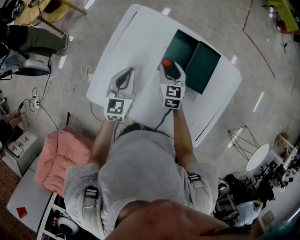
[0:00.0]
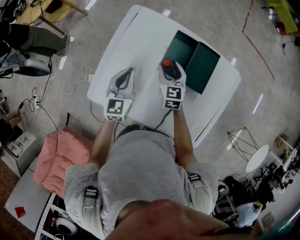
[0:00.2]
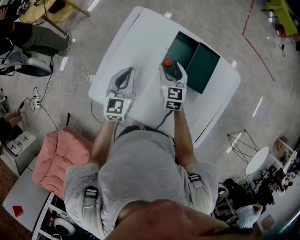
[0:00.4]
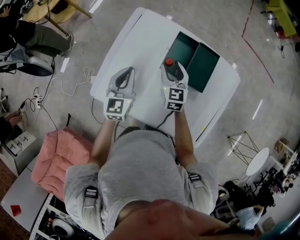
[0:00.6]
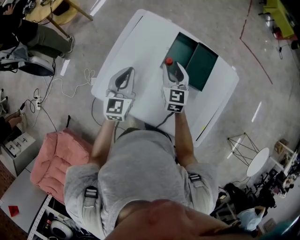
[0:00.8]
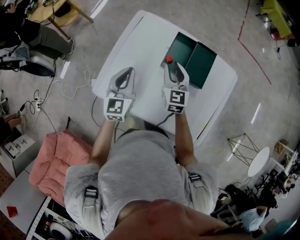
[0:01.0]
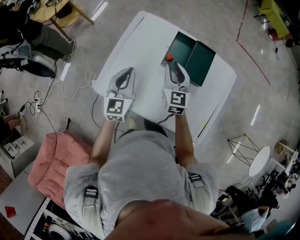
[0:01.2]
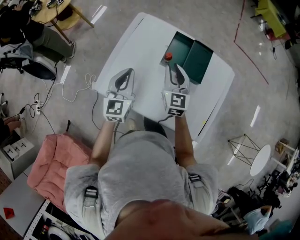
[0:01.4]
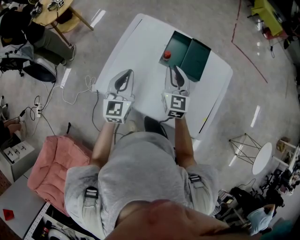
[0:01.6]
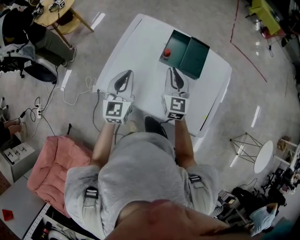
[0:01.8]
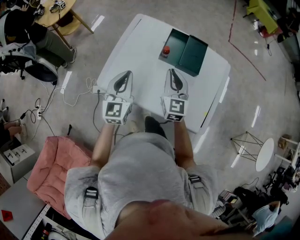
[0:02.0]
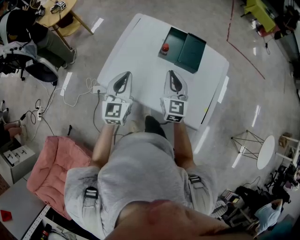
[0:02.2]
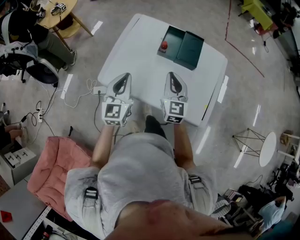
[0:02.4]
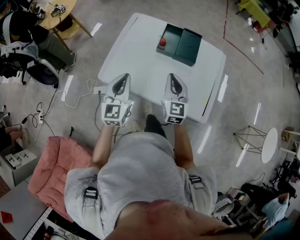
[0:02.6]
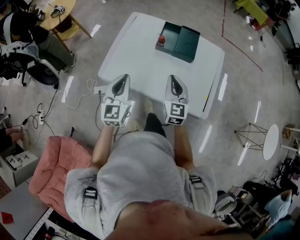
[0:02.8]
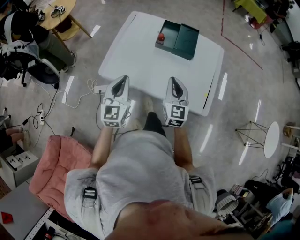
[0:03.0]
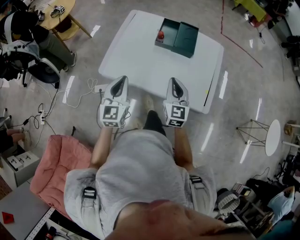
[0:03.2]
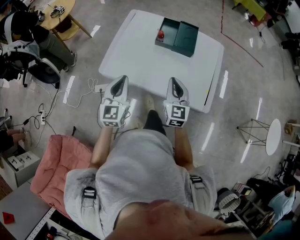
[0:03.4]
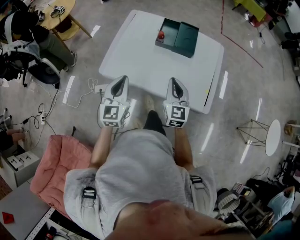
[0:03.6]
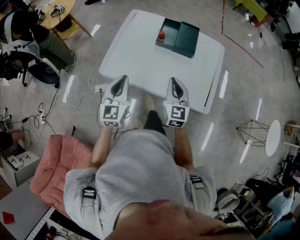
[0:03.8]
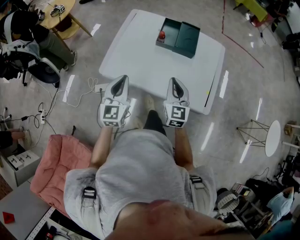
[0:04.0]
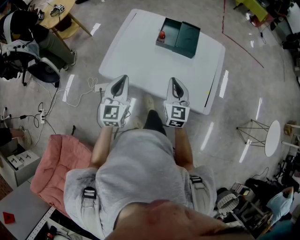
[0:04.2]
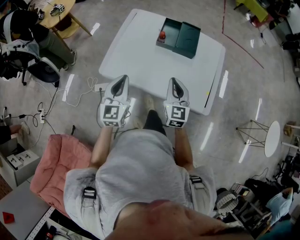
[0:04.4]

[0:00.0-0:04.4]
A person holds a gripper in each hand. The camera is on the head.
0:00.0 to 0:01.4: The left gripper moves backward and upward, approximately 15 cm; the right gripper travels upward and backward by about 20 cm, and closes its fingers.
0:01.4 to 0:03.0: The two grippers go approximately 25 cm backward. The right gripper closes its fingers.
0:03.0 to 0:04.4: The grippers move only a little.

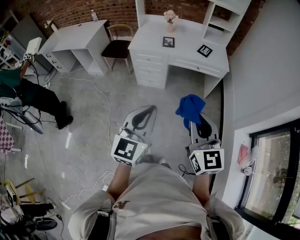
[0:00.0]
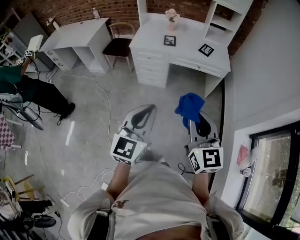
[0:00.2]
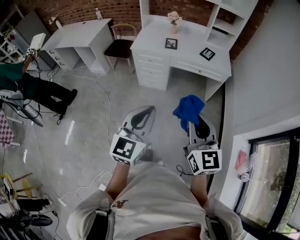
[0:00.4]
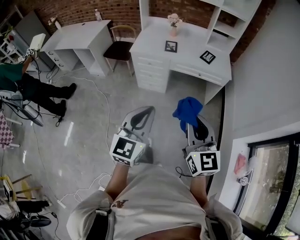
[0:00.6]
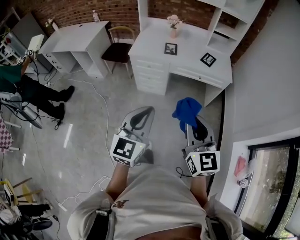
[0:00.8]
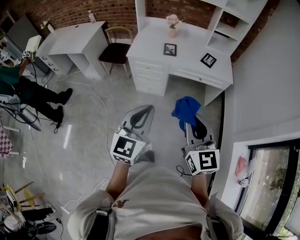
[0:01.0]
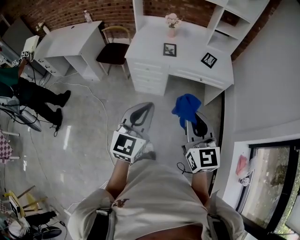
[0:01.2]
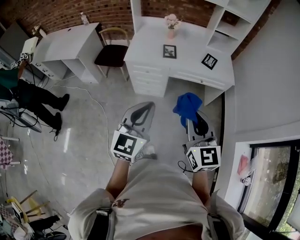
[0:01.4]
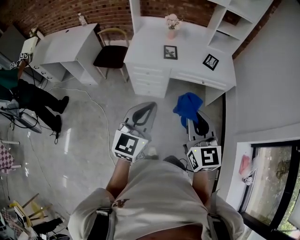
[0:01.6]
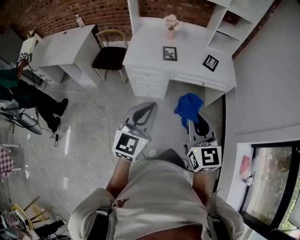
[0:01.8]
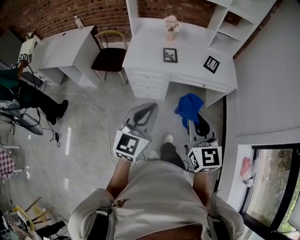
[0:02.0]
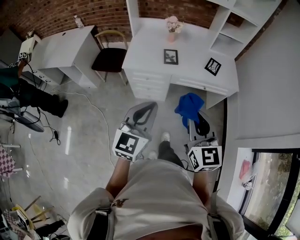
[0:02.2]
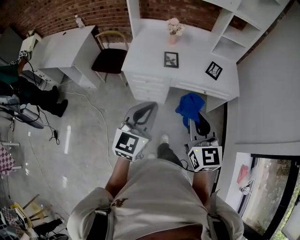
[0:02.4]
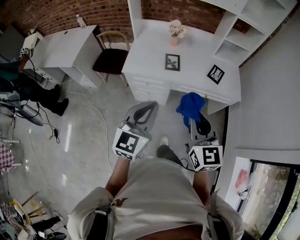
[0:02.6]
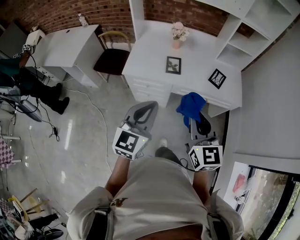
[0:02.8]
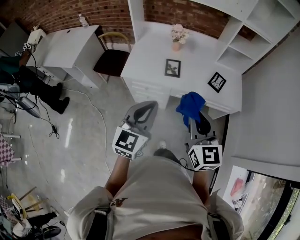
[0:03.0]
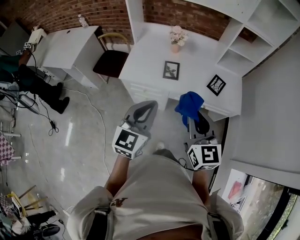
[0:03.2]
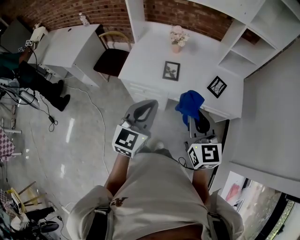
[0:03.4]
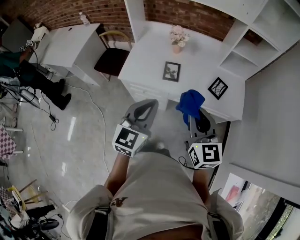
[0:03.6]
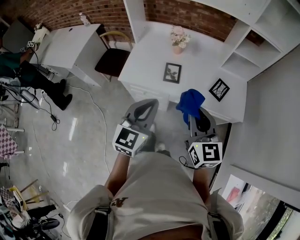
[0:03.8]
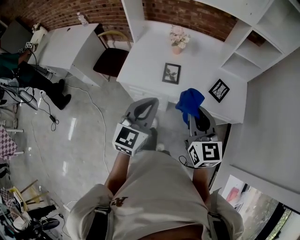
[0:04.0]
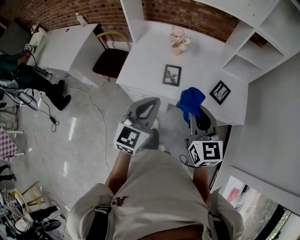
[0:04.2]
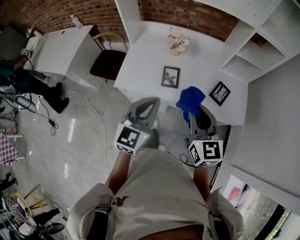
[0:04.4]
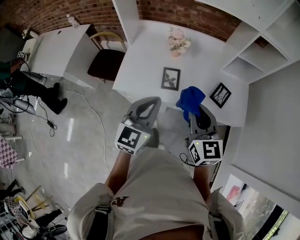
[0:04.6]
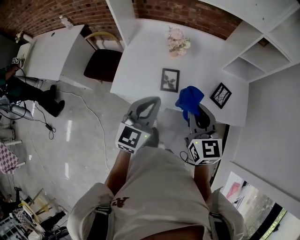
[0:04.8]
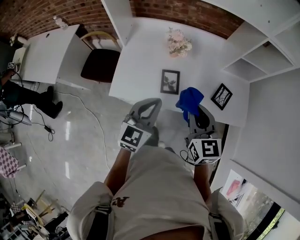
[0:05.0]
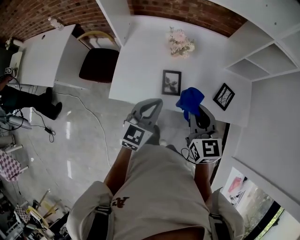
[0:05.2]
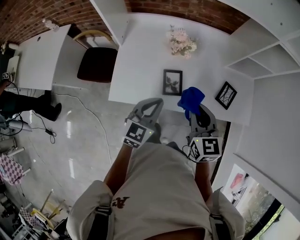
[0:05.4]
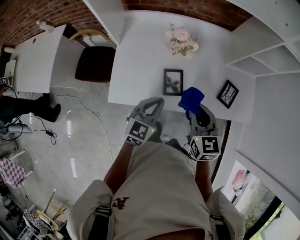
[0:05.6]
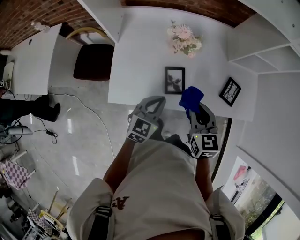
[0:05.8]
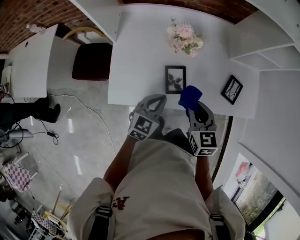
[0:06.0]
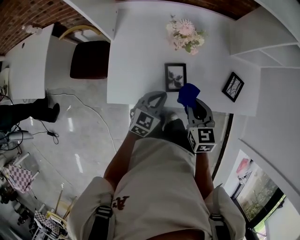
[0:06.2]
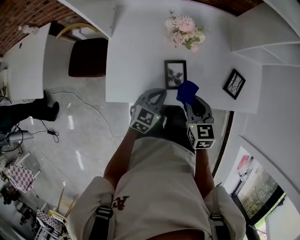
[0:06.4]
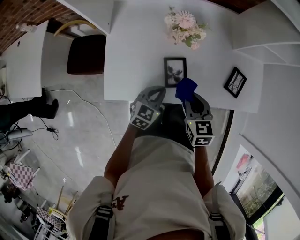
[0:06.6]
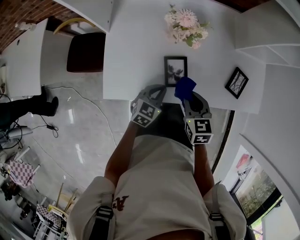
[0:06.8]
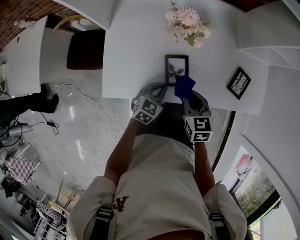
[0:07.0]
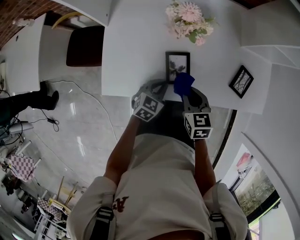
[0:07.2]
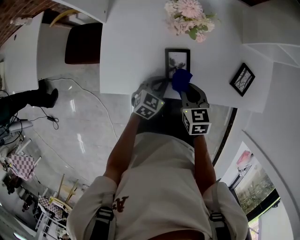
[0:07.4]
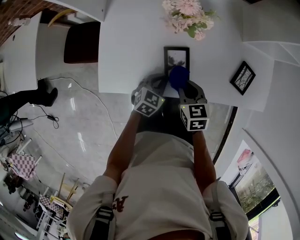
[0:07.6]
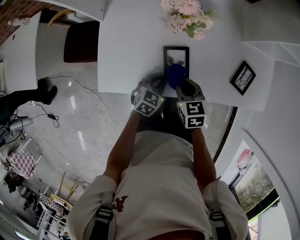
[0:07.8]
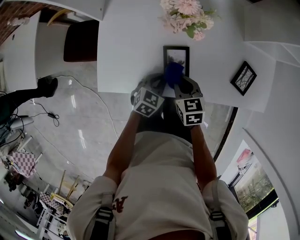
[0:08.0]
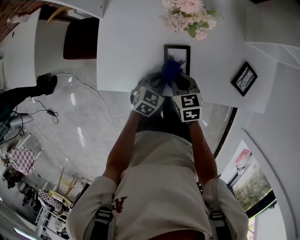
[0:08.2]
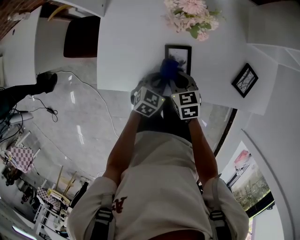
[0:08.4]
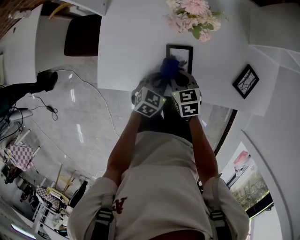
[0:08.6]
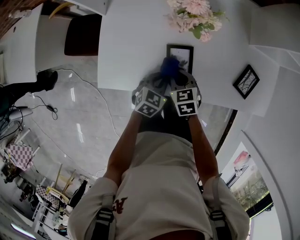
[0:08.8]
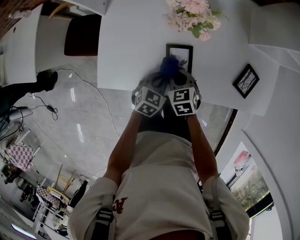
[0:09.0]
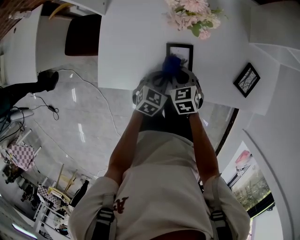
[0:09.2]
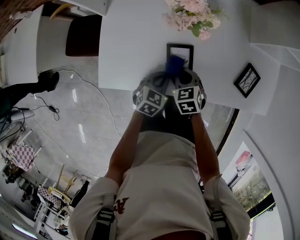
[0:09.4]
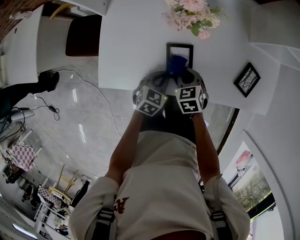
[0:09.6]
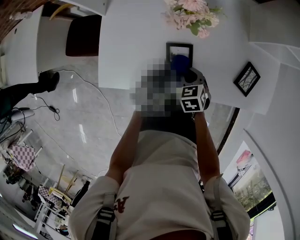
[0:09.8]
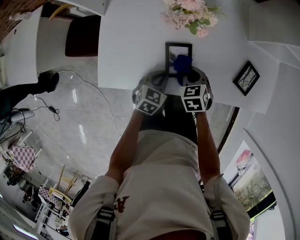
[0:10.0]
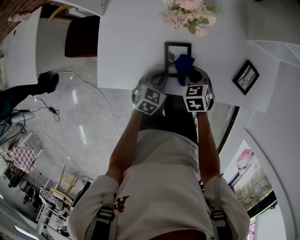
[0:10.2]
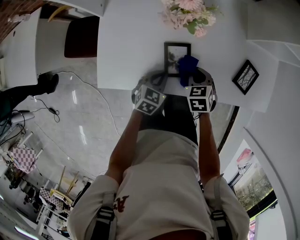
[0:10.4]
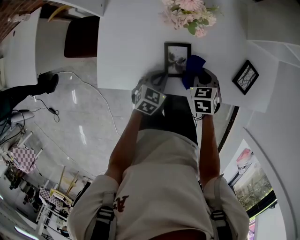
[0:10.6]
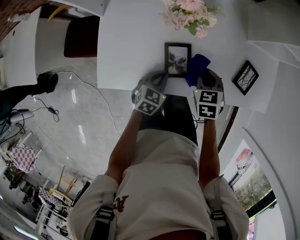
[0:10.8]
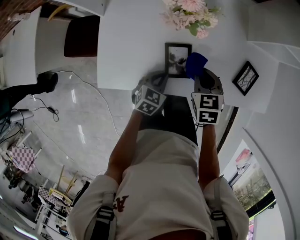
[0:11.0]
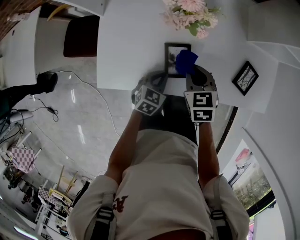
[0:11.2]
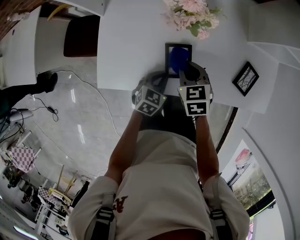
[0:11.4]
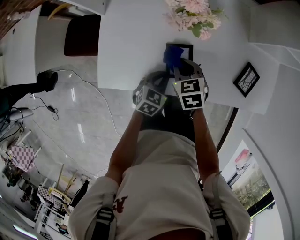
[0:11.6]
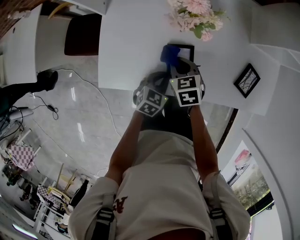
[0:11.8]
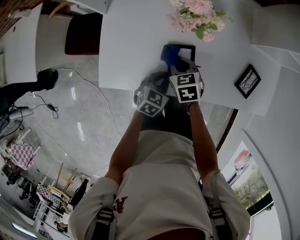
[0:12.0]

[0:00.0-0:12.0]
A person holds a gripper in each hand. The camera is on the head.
0:00.0 to 0:01.6: Both grippers travel together forward, about 25 cm.
0:01.6 to 0:03.0: Both grippers travel together forward, some 20 cm.
0:03.0 to 0:04.4: Both grippers travel together forward, some 15 cm.
0:04.4 to 0:06.0: Both grippers move downward and forward, some 25 cm. The right gripper rotates about 30 degrees. The left gripper changes its angle by roughly 30 degrees.
0:06.0 to 0:07.6: The two grippers go approximately 15 cm downward.
0:07.6 to 0:09.0: The right gripper is displaced downward by some 5 cm.
0:09.0 to 0:10.4: The right gripper goes about 10 cm to the right.
0:10.4 to 0:12.0: The right gripper heads to the left, covering approximately 10 cm.

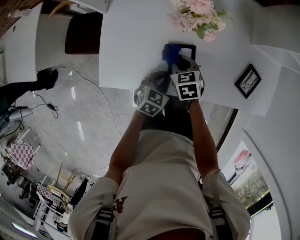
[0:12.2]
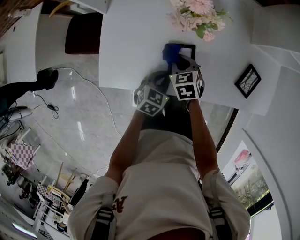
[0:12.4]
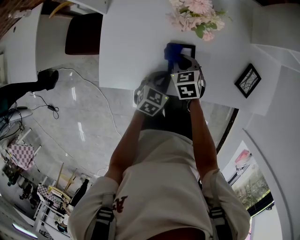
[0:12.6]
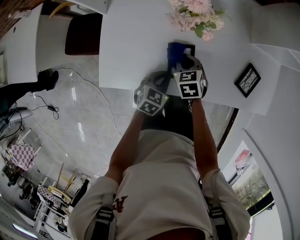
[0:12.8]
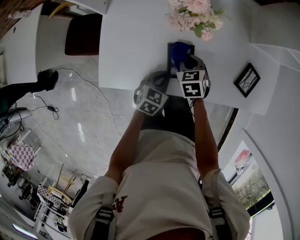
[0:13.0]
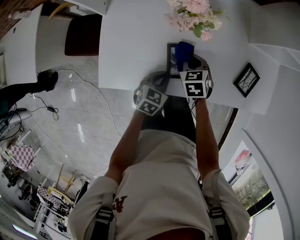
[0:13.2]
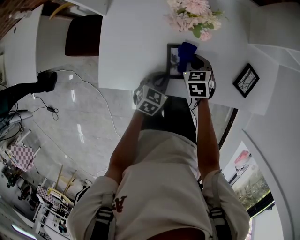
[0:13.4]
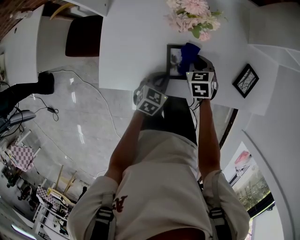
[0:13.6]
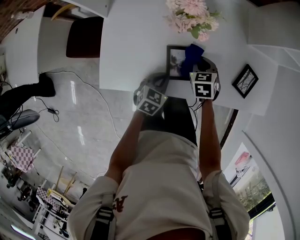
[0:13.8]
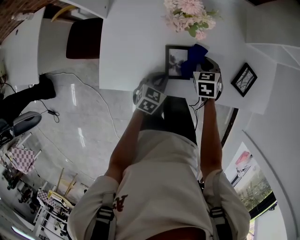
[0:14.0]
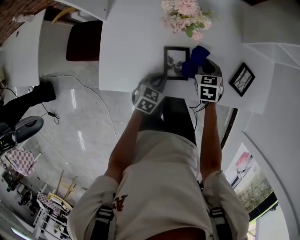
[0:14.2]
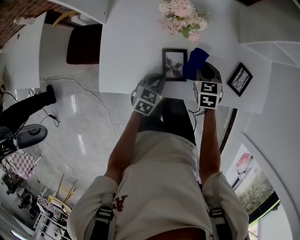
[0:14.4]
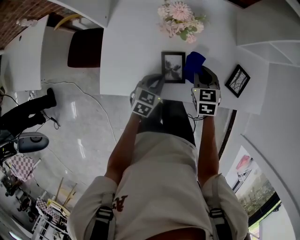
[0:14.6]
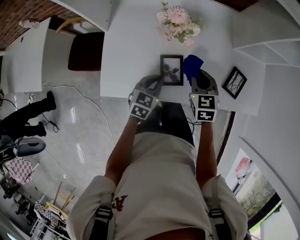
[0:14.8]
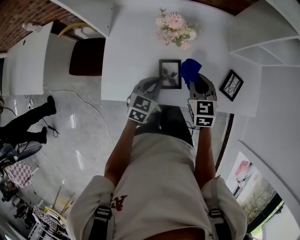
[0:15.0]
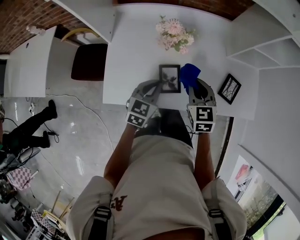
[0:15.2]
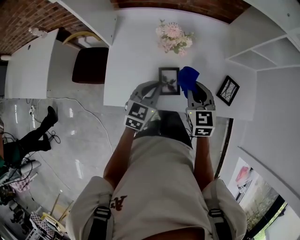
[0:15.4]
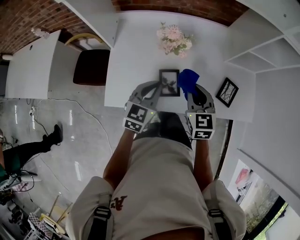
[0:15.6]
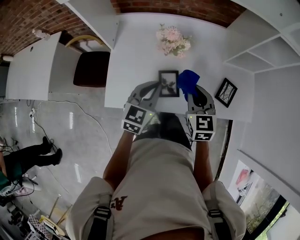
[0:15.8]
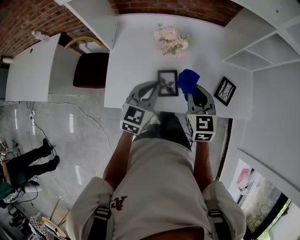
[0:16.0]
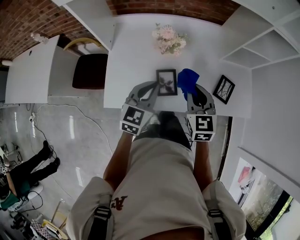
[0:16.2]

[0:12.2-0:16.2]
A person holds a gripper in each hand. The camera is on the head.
0:12.2 to 0:13.6: The right gripper shifts about 10 cm to the right.
0:13.6 to 0:14.8: The right gripper moves upward, approximately 10 cm; the left gripper is displaced upward by about 5 cm.
0:14.8 to 0:16.2: The left gripper moves upward, approximately 15 cm. The right gripper heads upward and backward, covering roughly 15 cm.

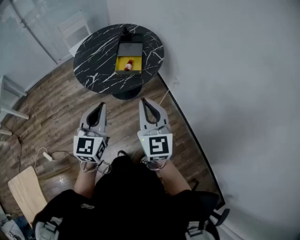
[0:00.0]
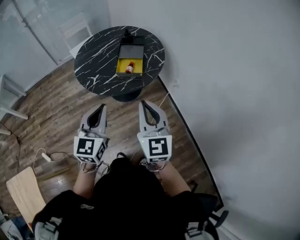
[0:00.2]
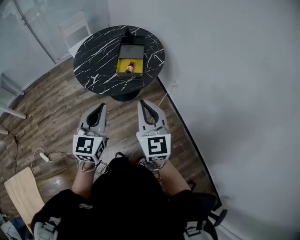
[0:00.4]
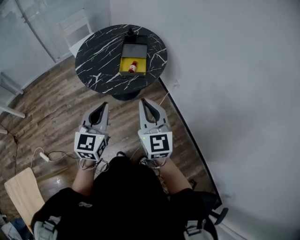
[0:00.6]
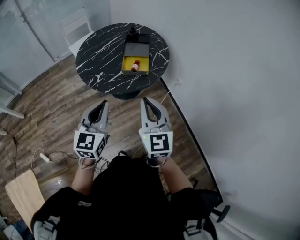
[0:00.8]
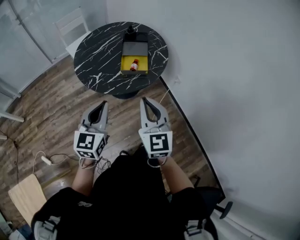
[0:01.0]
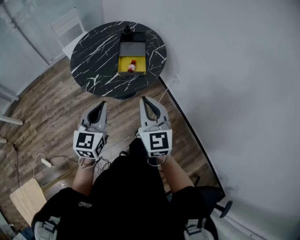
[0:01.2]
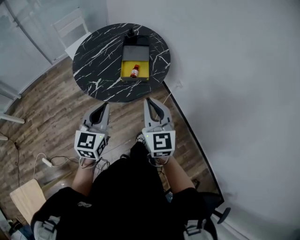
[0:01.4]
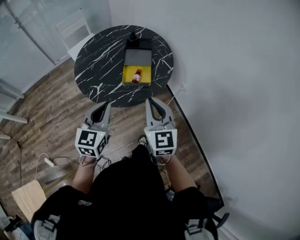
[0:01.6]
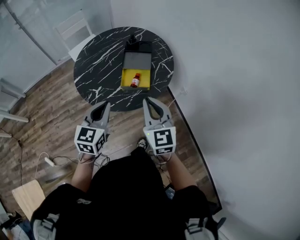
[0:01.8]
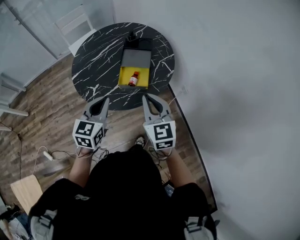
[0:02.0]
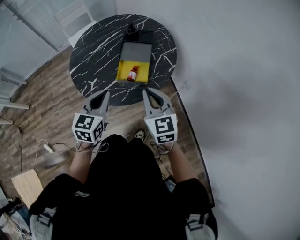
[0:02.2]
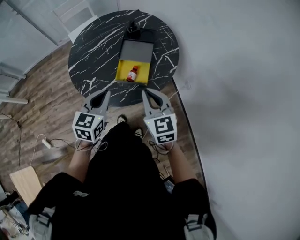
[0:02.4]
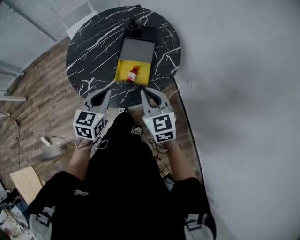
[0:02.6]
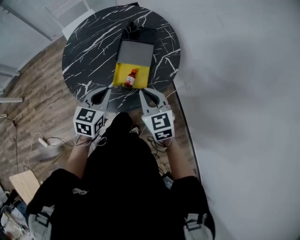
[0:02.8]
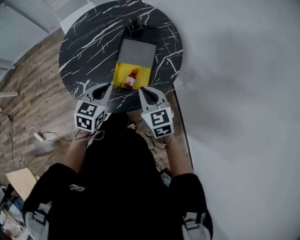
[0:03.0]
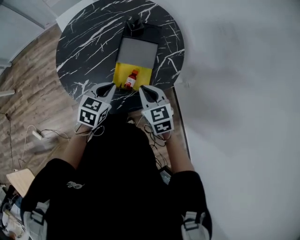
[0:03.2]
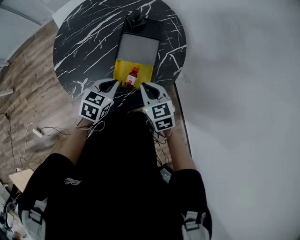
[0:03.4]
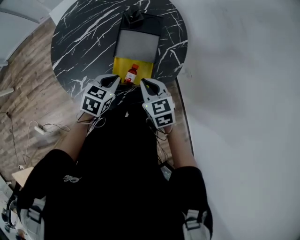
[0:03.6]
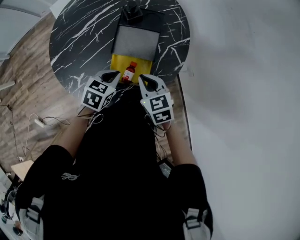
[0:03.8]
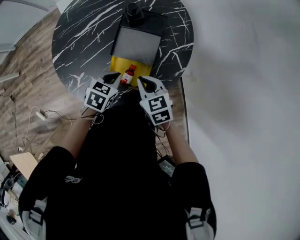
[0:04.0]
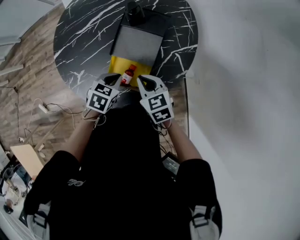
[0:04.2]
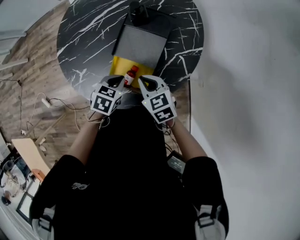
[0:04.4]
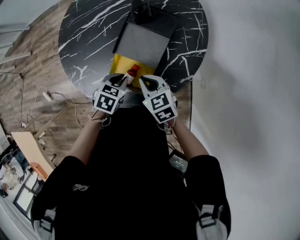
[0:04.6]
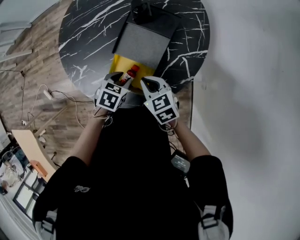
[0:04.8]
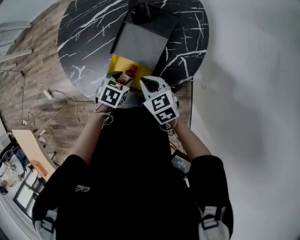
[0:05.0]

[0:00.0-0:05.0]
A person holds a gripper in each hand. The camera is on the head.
0:00.0 to 0:01.6: The right gripper travels forward by some 15 cm, while the left gripper goes some 15 cm forward and to the left.
0:01.6 to 0:03.4: The two grippers go some 30 cm forward and downward. The left gripper rotates about 30 degrees. The right gripper tips its fingers downward by some 30 degrees.
0:03.4 to 0:05.0: The right gripper is displaced downward by about 10 cm, and rotates about 30 degrees. The left gripper moves downward and to the right, about 15 cm, changes its angle by approximately 30 degrees, and opens up.
